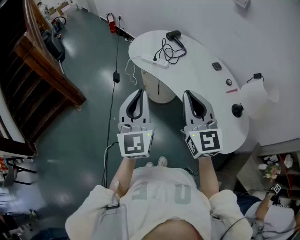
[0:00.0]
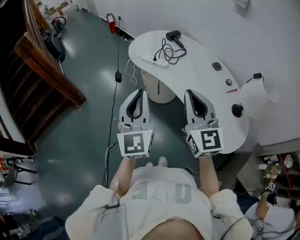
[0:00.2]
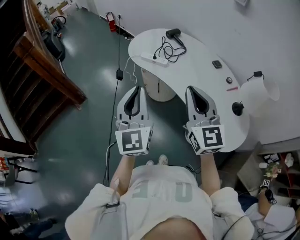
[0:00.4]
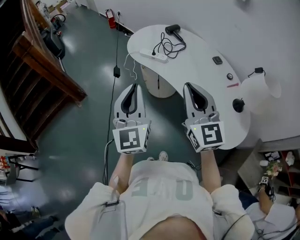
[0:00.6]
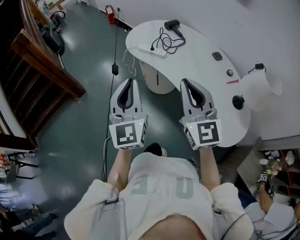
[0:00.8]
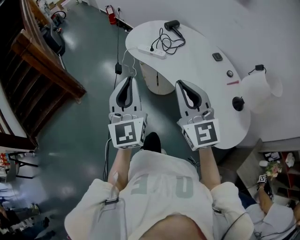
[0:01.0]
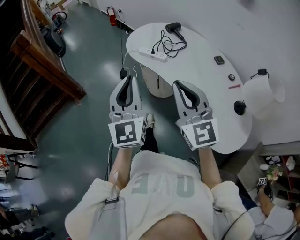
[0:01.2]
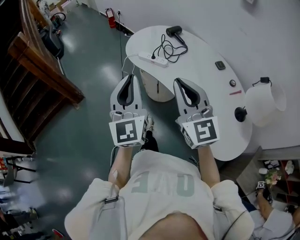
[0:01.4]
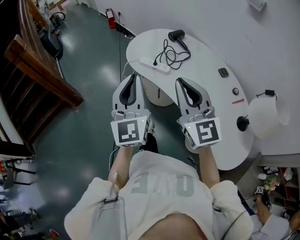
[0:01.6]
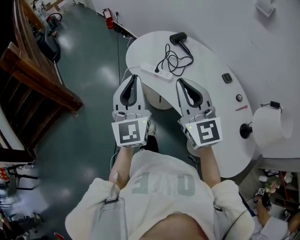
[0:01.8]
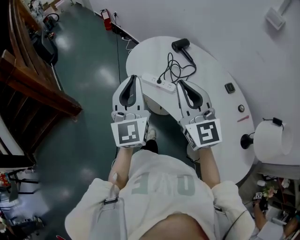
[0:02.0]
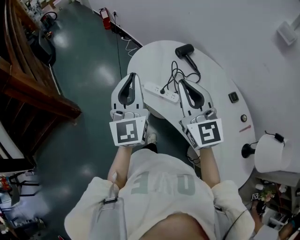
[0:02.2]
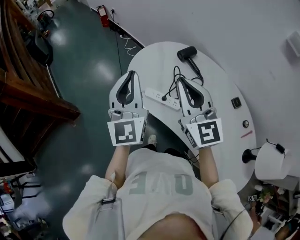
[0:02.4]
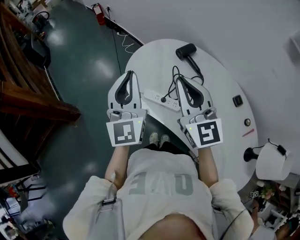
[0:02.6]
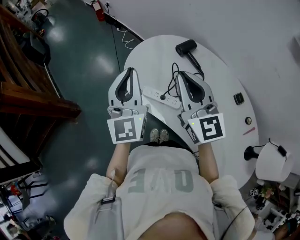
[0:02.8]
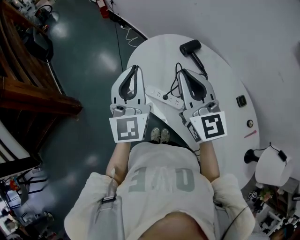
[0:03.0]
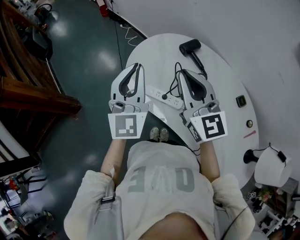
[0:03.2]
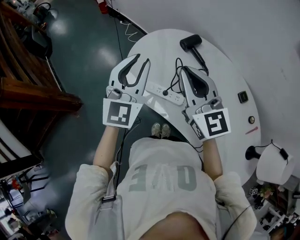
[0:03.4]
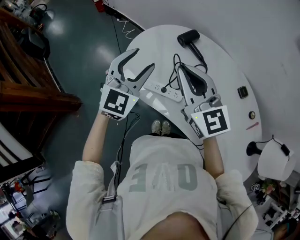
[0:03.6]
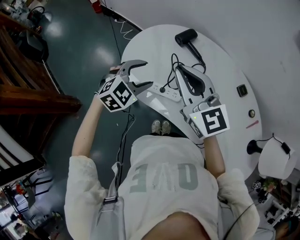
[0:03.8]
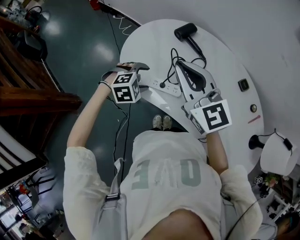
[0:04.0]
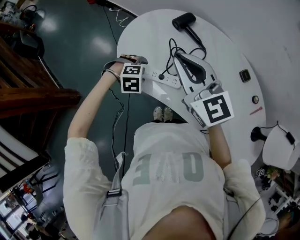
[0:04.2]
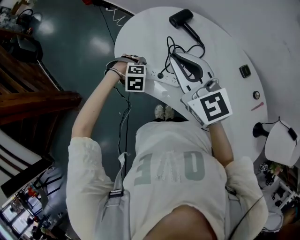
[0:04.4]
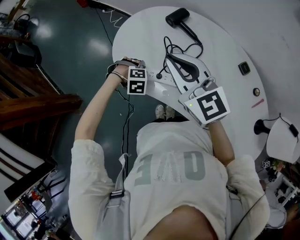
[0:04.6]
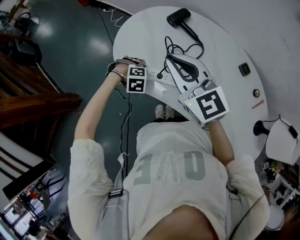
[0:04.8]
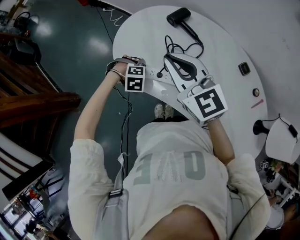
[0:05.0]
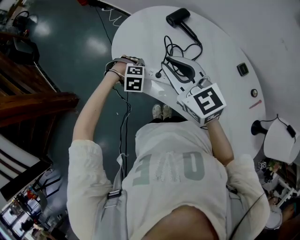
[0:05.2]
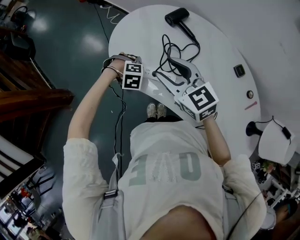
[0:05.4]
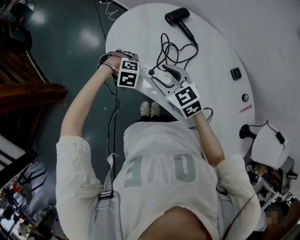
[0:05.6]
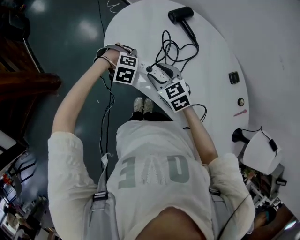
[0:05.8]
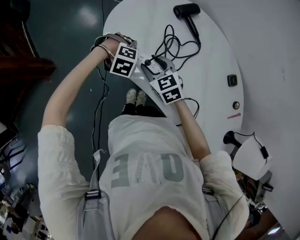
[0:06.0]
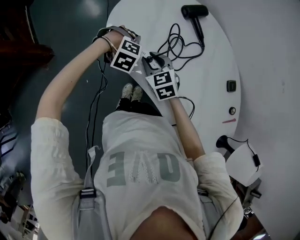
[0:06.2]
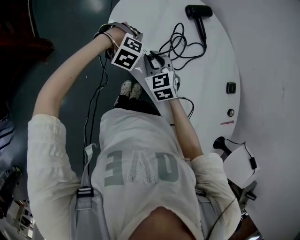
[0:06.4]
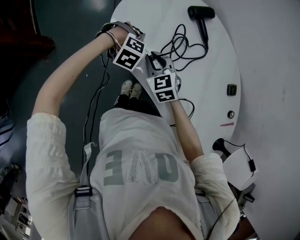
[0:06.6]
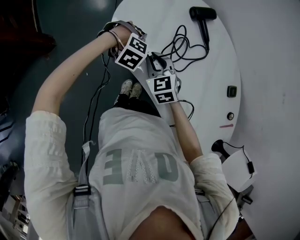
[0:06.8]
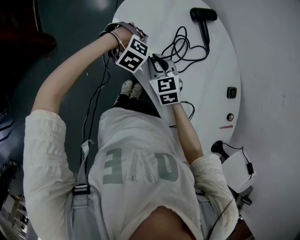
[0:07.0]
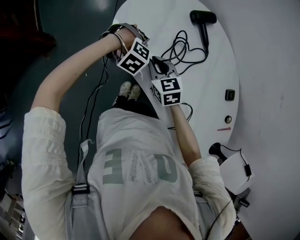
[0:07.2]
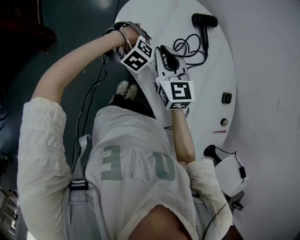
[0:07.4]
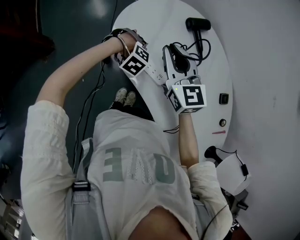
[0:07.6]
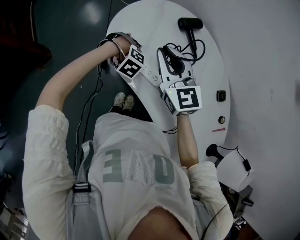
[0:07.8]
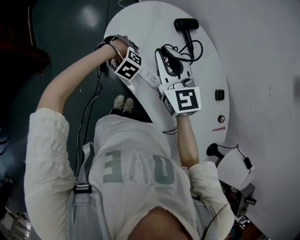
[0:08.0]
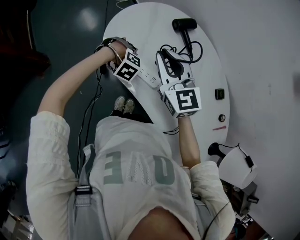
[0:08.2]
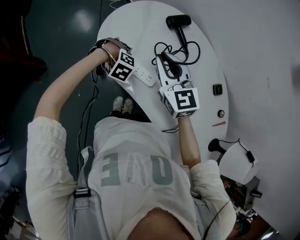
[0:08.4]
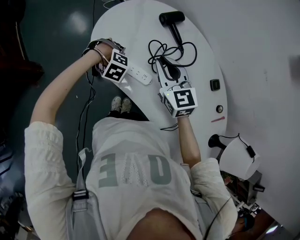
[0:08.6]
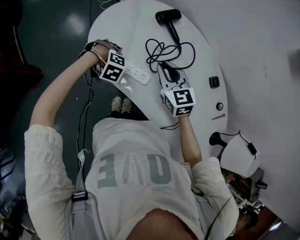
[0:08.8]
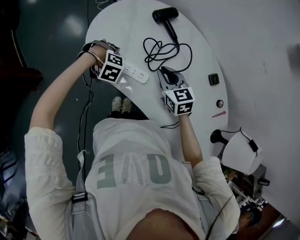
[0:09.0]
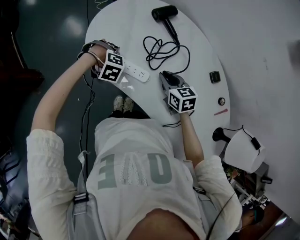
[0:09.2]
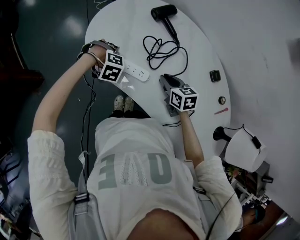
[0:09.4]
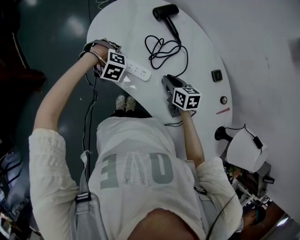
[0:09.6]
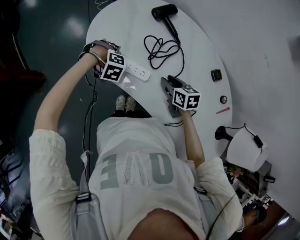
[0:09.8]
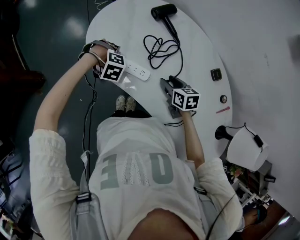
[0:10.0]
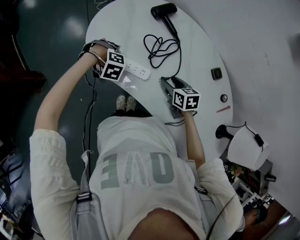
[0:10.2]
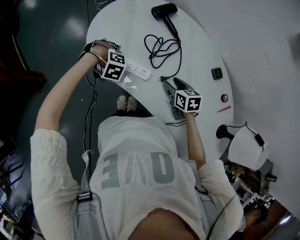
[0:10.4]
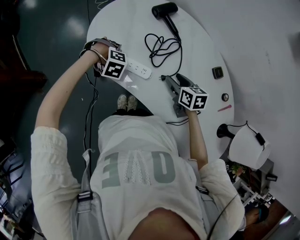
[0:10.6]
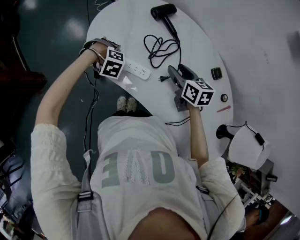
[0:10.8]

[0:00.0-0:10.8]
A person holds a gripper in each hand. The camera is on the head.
0:00.0 to 0:01.6: The two grippers go roughly 15 cm forward.
0:01.6 to 0:03.0: The grippers both shift forward by approximately 35 cm.
0:03.0 to 0:04.6: The left gripper heads downward, covering approximately 35 cm, angles its fingers downward, by about 90 degrees, and opens its fingers. Meanwhile the right gripper moves downward, some 5 cm.
0:04.6 to 0:06.2: The right gripper shifts some 25 cm downward, tilts its fingers some 30 degrees downward, and opens.
0:06.2 to 0:07.8: The right gripper is displaced upward by roughly 20 cm, and turns by roughly 30 degrees.
0:07.8 to 0:09.2: The right gripper travels downward by about 20 cm, and rotates some 40 degrees.
0:09.2 to 0:10.8: The right gripper moves about 5 cm, and opens.

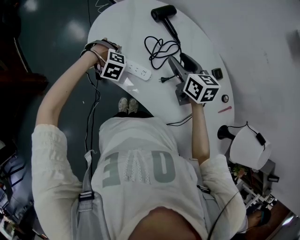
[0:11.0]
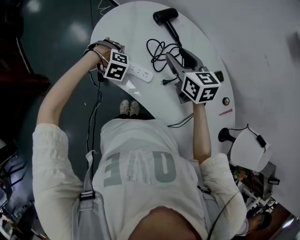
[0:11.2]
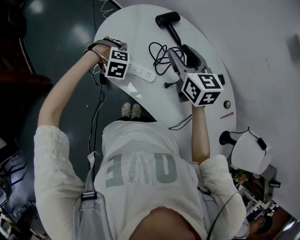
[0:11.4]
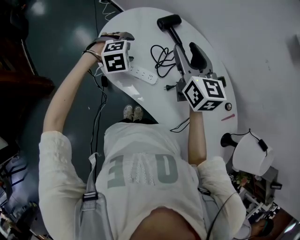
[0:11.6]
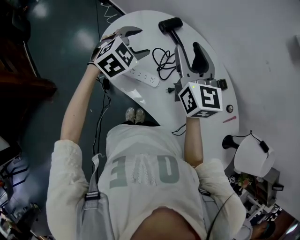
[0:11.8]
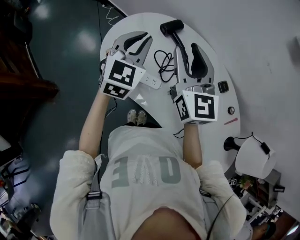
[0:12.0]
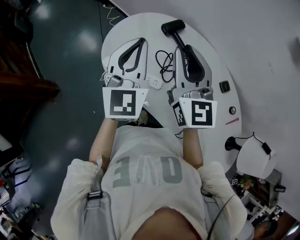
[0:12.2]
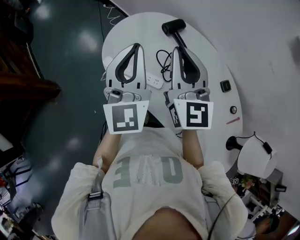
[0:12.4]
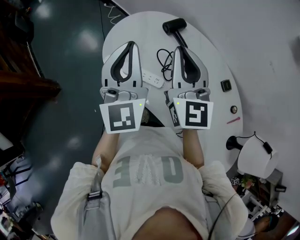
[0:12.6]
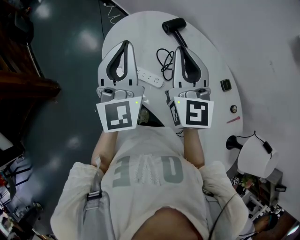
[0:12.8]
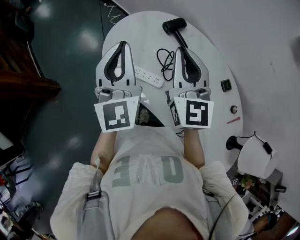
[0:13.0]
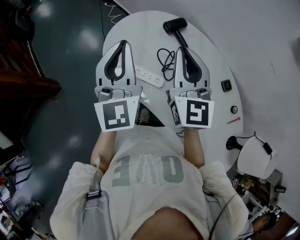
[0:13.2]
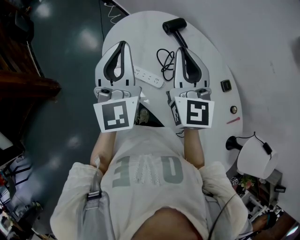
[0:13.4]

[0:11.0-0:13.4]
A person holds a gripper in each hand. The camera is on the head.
0:11.0 to 0:12.2: The left gripper shifts approximately 35 cm upward, points its fingers roughly 90 degrees further upward, and closes its fingers, while the right gripper goes some 20 cm upward, angles its fingers upward, by approximately 30 degrees, and closes.
0:12.2 to 0:13.4: The left gripper shifts by about 5 cm.

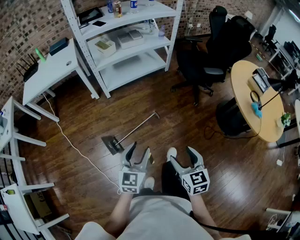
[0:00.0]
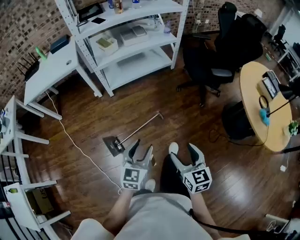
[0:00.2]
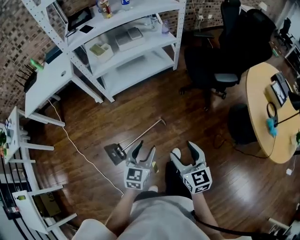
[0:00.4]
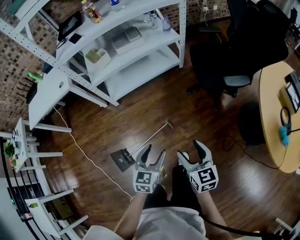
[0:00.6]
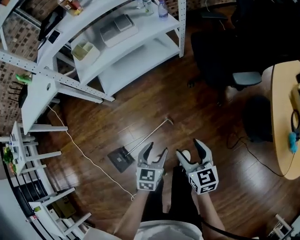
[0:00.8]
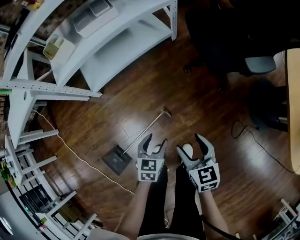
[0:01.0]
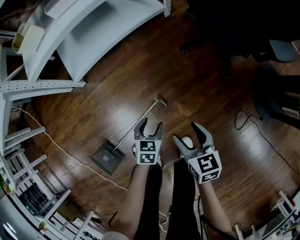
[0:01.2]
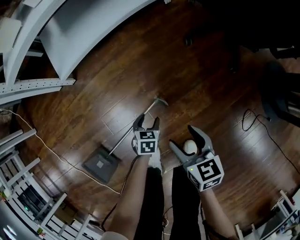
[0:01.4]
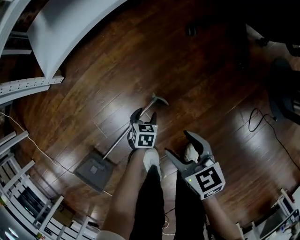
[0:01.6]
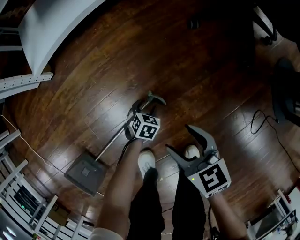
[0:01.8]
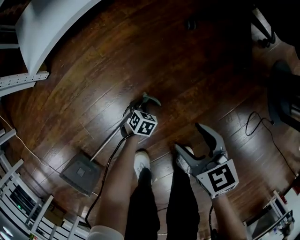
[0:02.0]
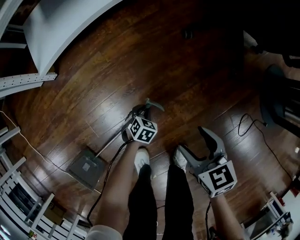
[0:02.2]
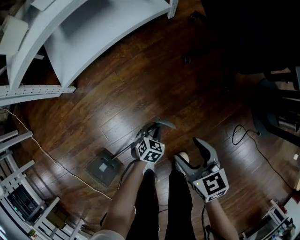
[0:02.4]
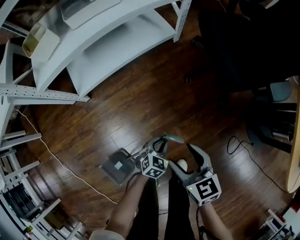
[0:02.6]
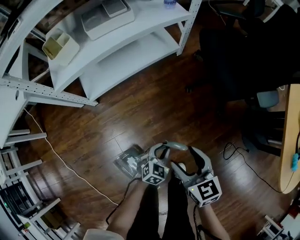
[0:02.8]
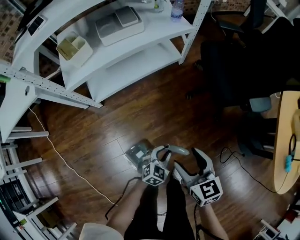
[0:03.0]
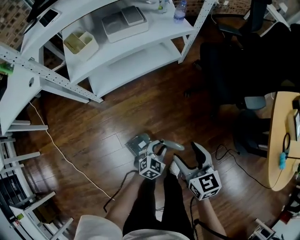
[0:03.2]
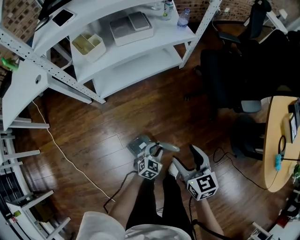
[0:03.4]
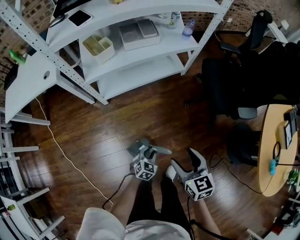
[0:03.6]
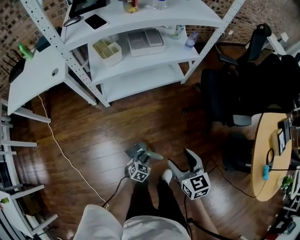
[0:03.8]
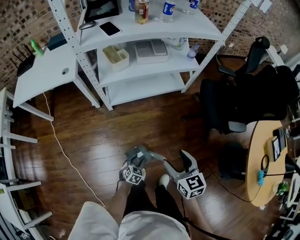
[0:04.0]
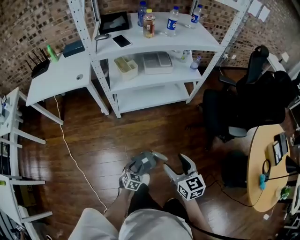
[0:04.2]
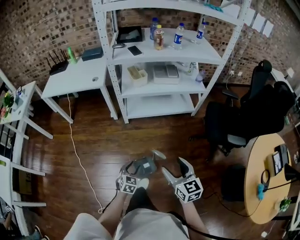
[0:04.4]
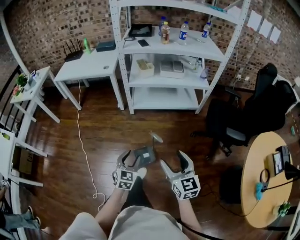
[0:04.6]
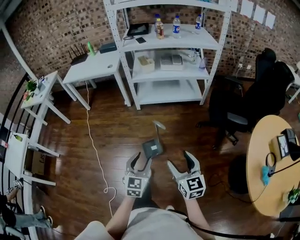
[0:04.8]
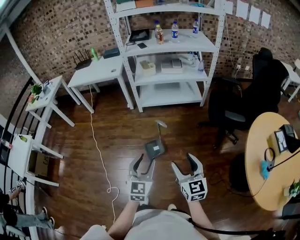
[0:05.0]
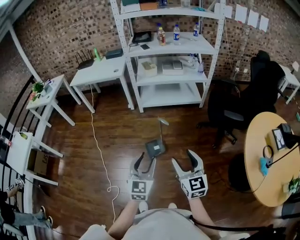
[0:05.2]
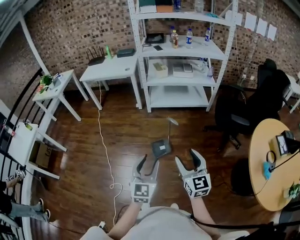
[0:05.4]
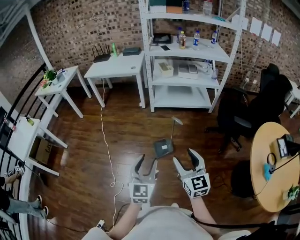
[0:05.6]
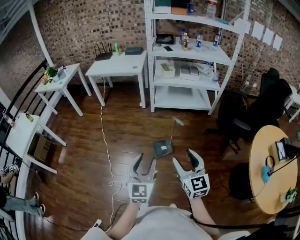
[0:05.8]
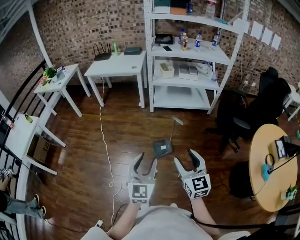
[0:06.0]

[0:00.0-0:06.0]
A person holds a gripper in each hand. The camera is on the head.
0:00.0 to 0:01.6: The pair of grippers is taken forward, roughly 50 cm. Both grippers move downward, roughly 70 cm. The left gripper angles its fingers downward, by some 50 degrees; the right gripper swivels approximately 20 degrees.
0:01.6 to 0:03.0: Both grippers travel together upward, some 40 cm. The left gripper turns by some 30 degrees, and closes up.
0:03.0 to 0:04.4: The right gripper shifts about 20 cm upward, and rotates approximately 20 degrees. The left gripper ends up approximately 35 cm from where it was, swivels approximately 40 degrees, and opens.
0:04.4 to 0:06.0: The right gripper shifts roughly 35 cm backward. The left gripper moves backward and upward, roughly 50 cm, and tilts its fingers roughly 40 degrees upward.

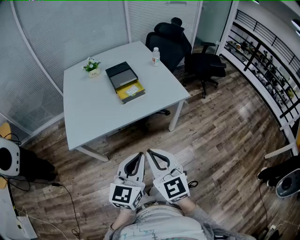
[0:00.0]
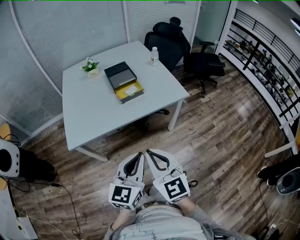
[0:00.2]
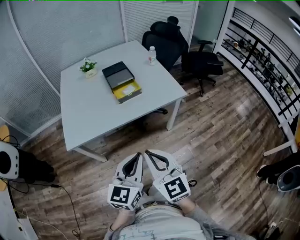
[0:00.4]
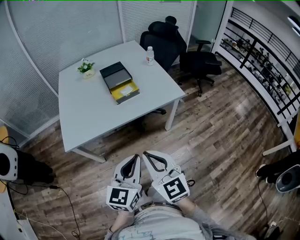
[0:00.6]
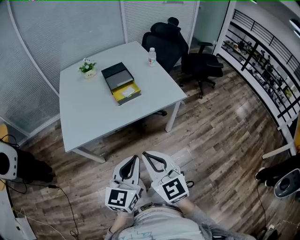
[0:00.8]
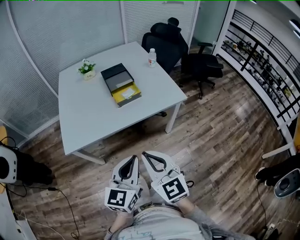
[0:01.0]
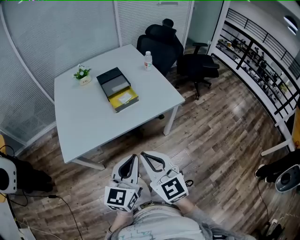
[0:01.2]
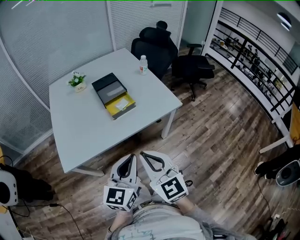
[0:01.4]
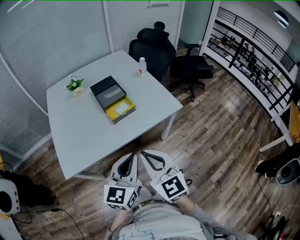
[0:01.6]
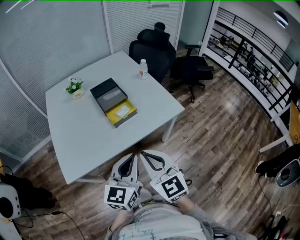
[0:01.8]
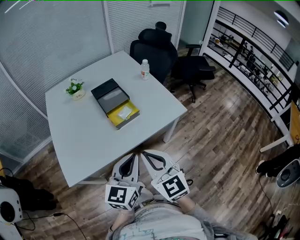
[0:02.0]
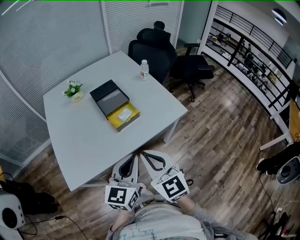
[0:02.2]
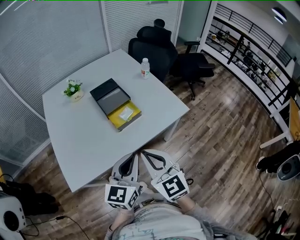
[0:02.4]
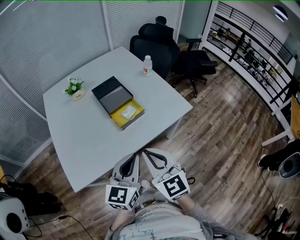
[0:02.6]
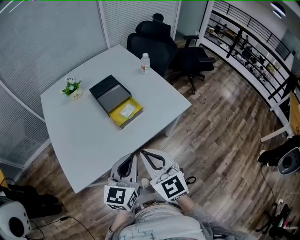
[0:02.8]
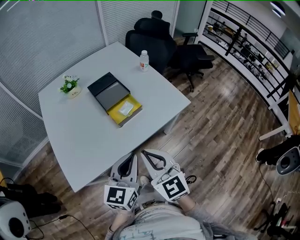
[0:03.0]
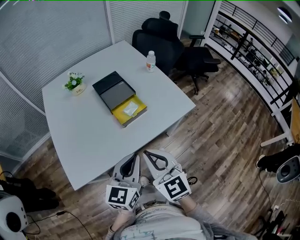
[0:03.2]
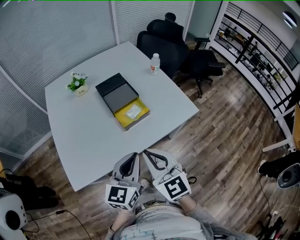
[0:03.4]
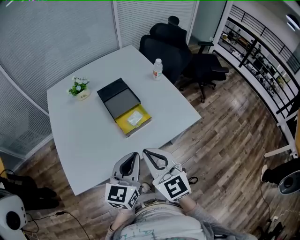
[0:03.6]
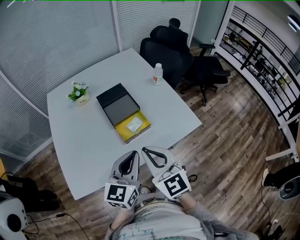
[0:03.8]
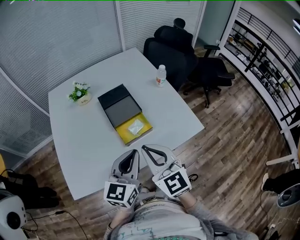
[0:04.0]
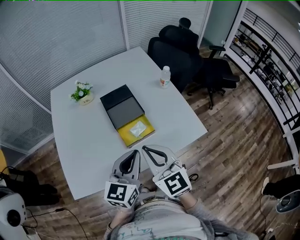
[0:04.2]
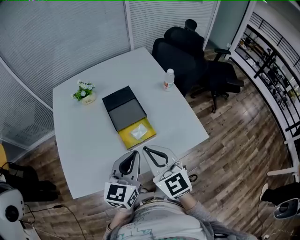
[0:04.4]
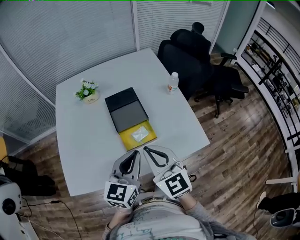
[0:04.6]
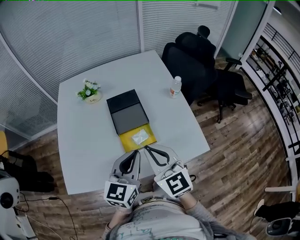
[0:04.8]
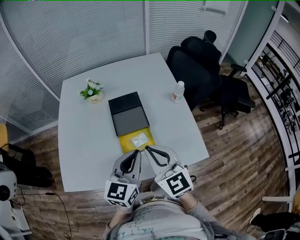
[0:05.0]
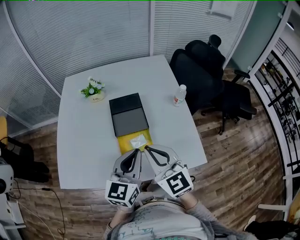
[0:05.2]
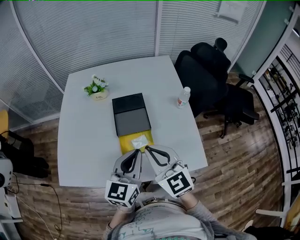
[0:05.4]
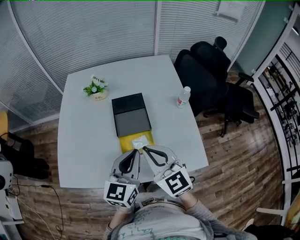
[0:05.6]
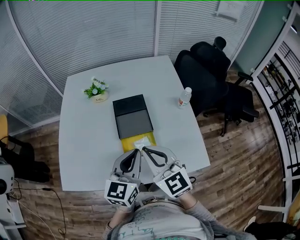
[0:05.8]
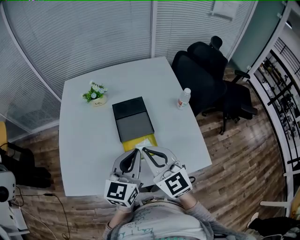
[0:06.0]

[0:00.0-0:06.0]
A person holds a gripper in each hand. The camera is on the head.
0:00.0 to 0:01.6: The grippers both shift forward by roughly 15 cm.
0:01.6 to 0:03.0: Both grippers move forward and to the left, roughly 10 cm.
0:03.0 to 0:04.4: The grippers both shift forward by roughly 20 cm.
0:04.4 to 0:06.0: Both grippers move forward, about 10 cm.
